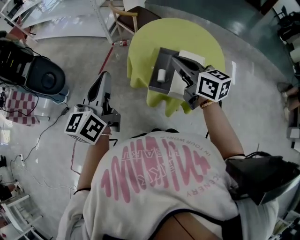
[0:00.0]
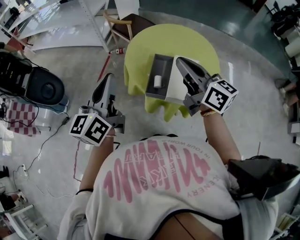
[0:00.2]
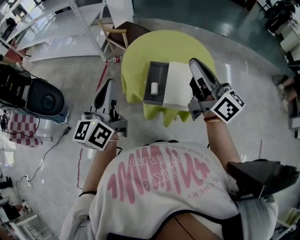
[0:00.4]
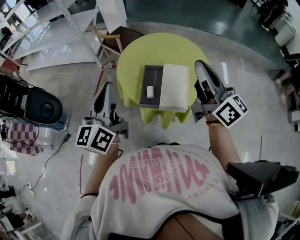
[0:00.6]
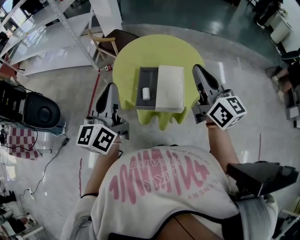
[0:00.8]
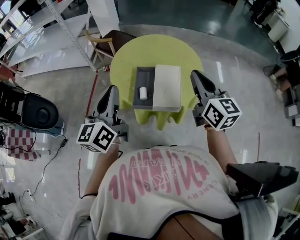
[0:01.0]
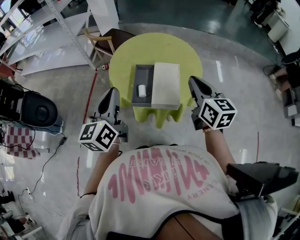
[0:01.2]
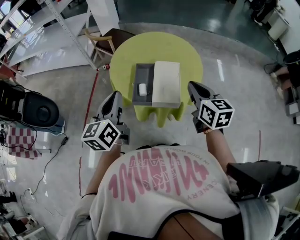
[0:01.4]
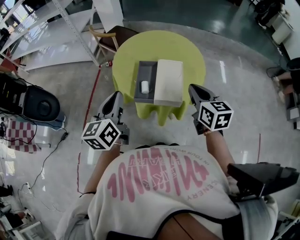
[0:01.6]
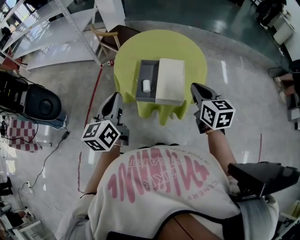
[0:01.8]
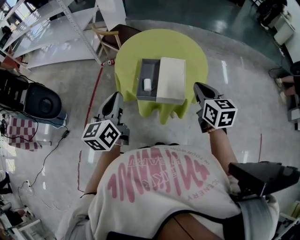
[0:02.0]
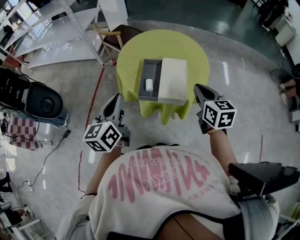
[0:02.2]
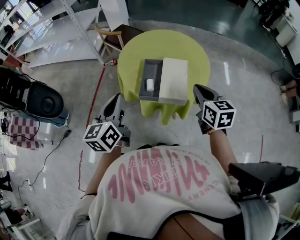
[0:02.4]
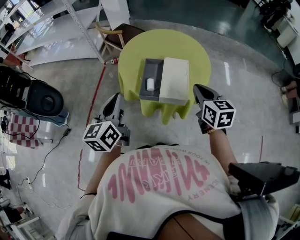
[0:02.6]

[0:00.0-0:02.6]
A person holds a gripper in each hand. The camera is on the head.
0:00.0 to 0:01.2: The left gripper travels to the right by roughly 10 cm; the right gripper is displaced to the right and backward by some 20 cm, and swivels approximately 30 degrees.
0:01.2 to 0:02.6: The right gripper heads downward, covering about 5 cm. Meanwhile the left gripper moves roughly 5 cm.

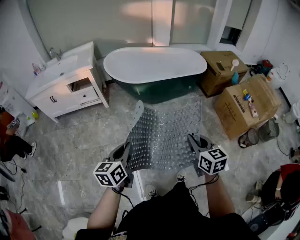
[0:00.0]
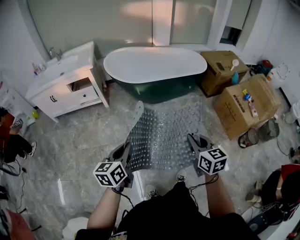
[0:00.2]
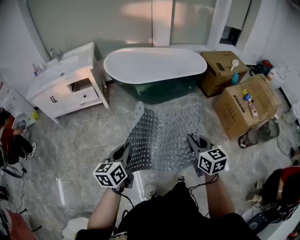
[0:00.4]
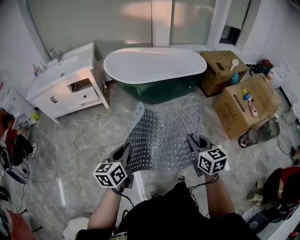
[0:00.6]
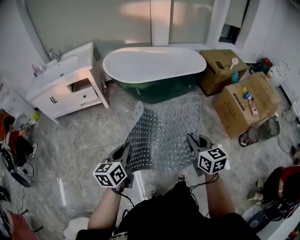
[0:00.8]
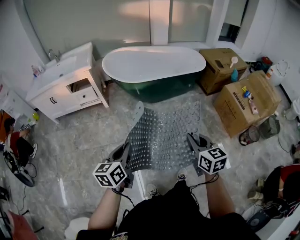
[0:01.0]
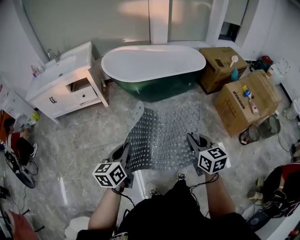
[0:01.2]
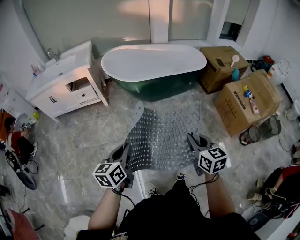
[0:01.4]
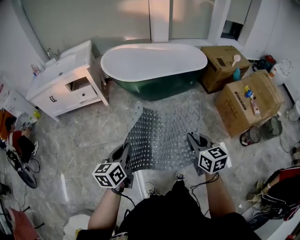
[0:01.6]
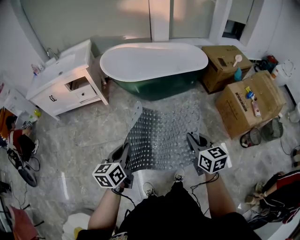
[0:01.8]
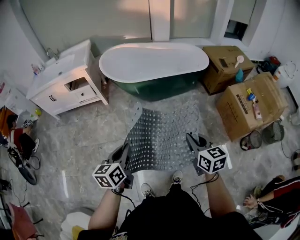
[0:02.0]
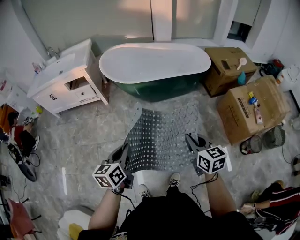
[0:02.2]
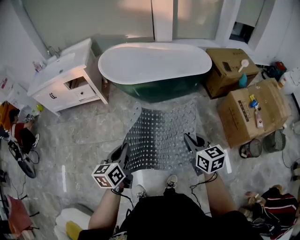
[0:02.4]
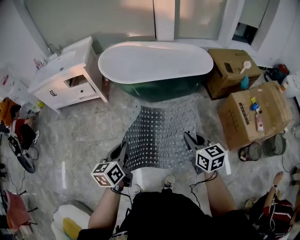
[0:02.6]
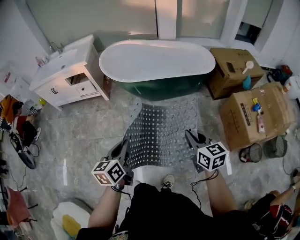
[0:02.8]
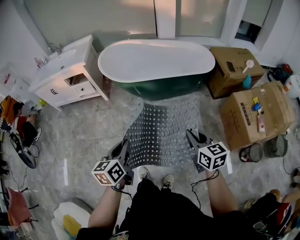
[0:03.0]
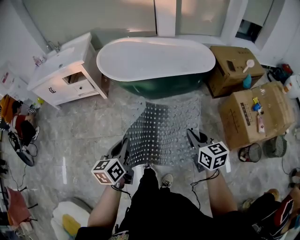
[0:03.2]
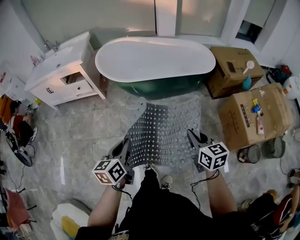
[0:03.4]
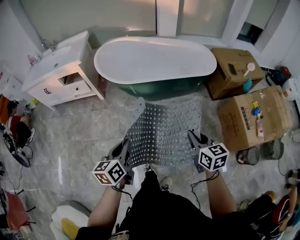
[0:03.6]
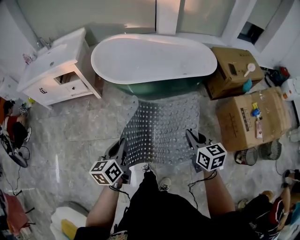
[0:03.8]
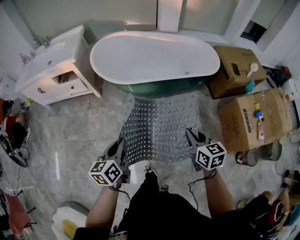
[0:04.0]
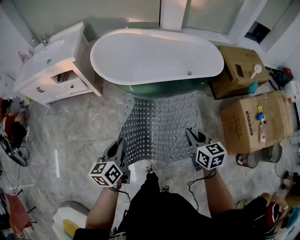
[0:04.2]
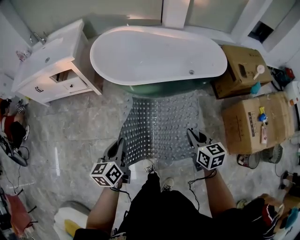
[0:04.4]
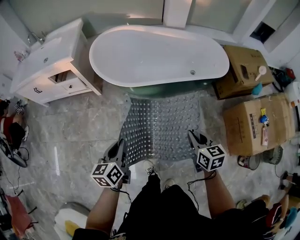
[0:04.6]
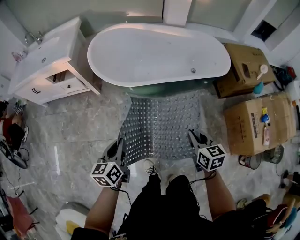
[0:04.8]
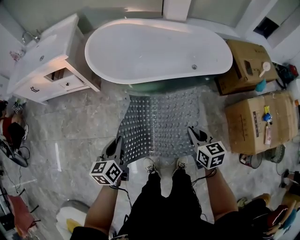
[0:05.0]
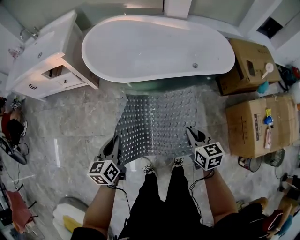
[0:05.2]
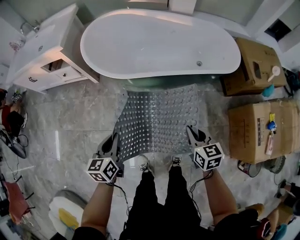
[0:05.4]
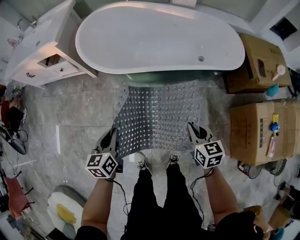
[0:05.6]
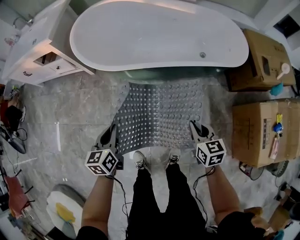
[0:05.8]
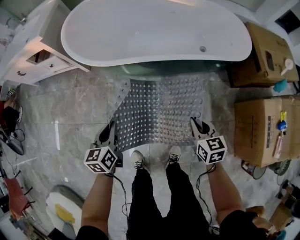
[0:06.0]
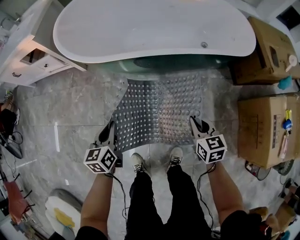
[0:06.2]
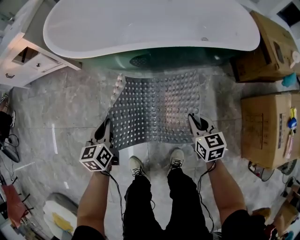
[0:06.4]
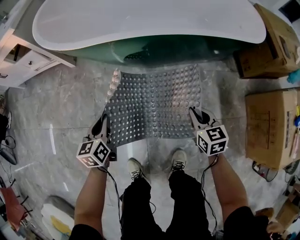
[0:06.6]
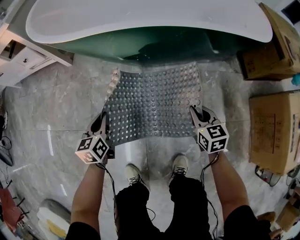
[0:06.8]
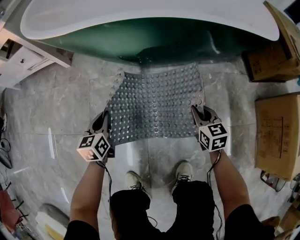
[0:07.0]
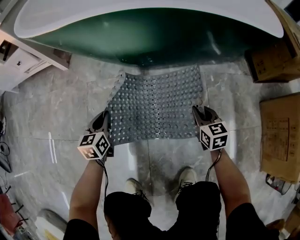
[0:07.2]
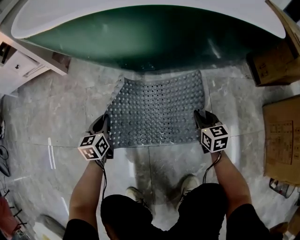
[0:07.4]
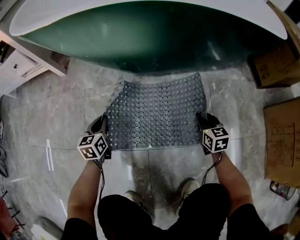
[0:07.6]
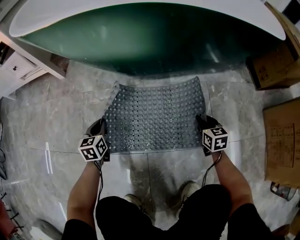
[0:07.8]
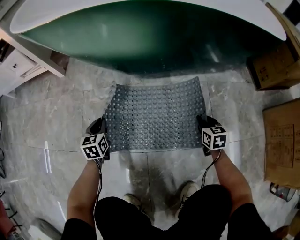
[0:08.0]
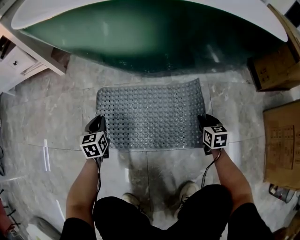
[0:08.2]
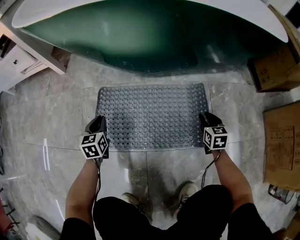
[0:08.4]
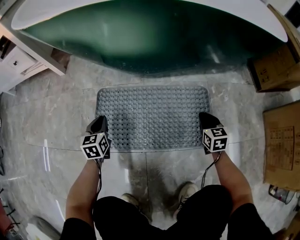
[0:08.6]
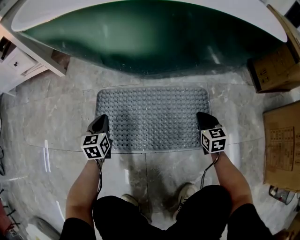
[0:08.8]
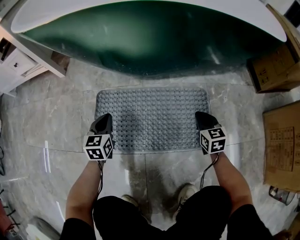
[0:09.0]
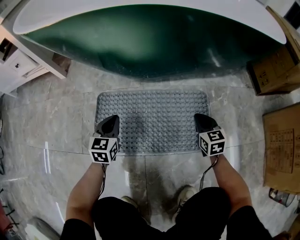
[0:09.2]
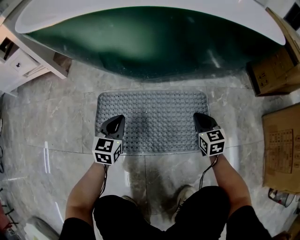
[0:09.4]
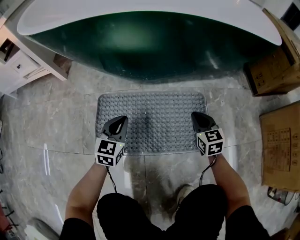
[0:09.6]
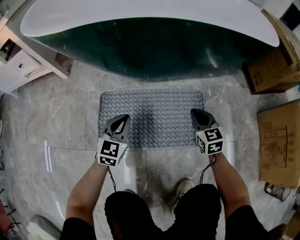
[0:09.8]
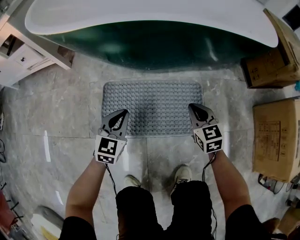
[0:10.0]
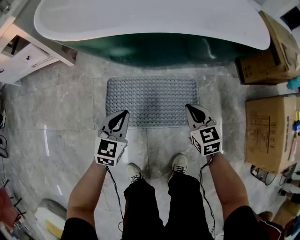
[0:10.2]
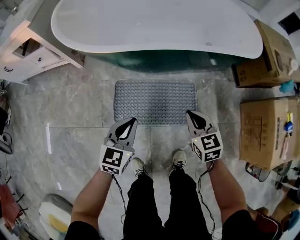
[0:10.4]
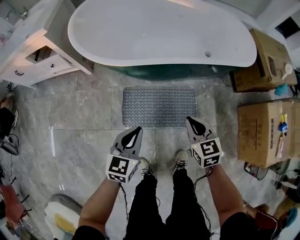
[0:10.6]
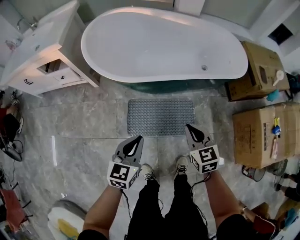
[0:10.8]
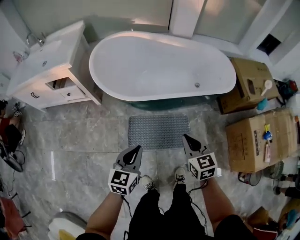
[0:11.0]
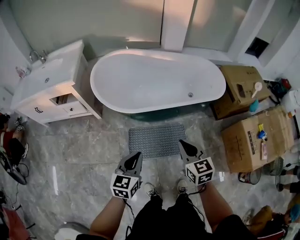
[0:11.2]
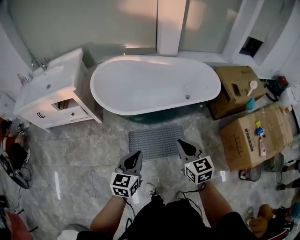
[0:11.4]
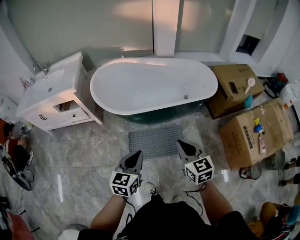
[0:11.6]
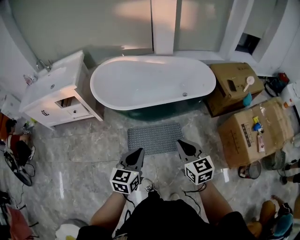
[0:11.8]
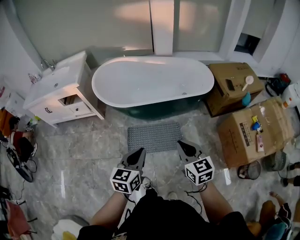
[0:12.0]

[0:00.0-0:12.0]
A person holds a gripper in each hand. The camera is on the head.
0:00.0 to 0:01.6: The grippers stay close to where they were, moving slightly.
0:01.6 to 0:03.0: Both grippers travel together to the right and forward, some 20 cm.
0:03.0 to 0:04.4: The right gripper travels forward and downward by about 25 cm, while the left gripper shifts approximately 20 cm forward.
0:04.4 to 0:06.0: The right gripper moves downward, to the right and forward, some 30 cm; the left gripper travels downward and forward by about 25 cm.
0:06.0 to 0:07.6: Both grippers travel together downward, roughly 50 cm.
0:07.6 to 0:09.0: The right gripper opens and closes again.
0:09.0 to 0:10.4: Both grippers travel together upward, approximately 35 cm.
0:10.4 to 0:12.0: Both grippers move upward and backward, approximately 50 cm.

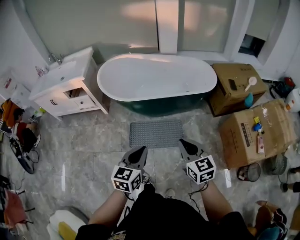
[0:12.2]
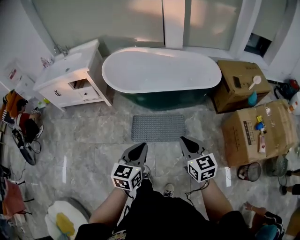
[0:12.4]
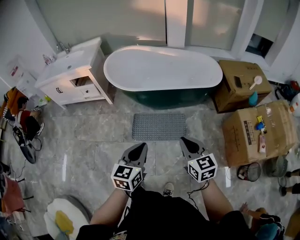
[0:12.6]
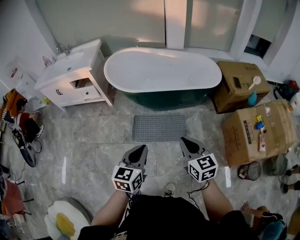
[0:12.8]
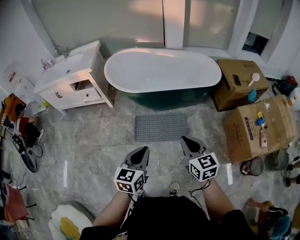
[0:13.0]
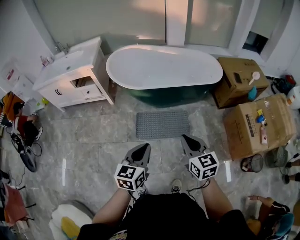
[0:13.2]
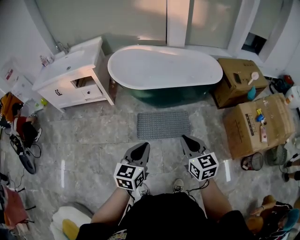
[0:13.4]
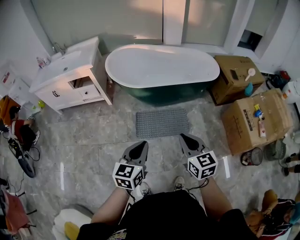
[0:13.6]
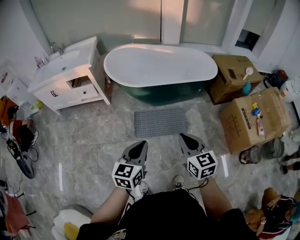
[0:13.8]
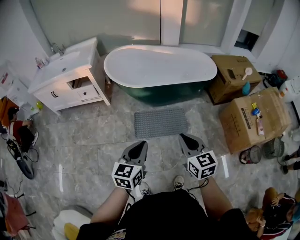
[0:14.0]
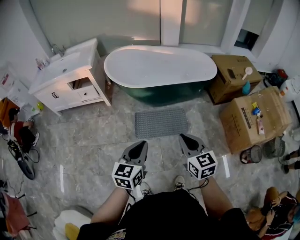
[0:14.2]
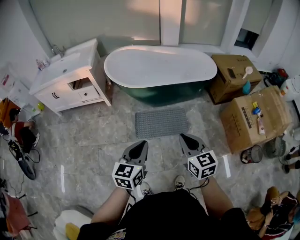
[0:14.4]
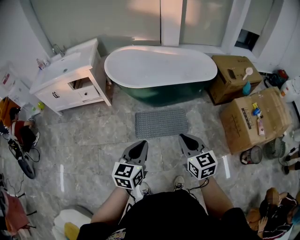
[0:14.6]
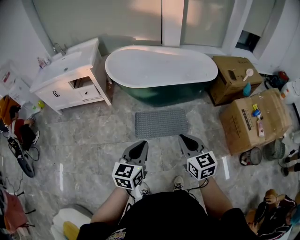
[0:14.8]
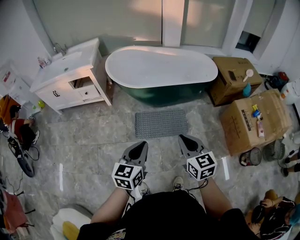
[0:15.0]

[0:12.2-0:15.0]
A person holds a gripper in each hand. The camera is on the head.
0:12.2 to 0:13.6: Both grippers travel together to the left and backward, about 15 cm.
0:13.6 to 0:15.0: The grippers stay close to where they were, moving slightly.

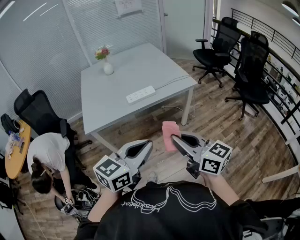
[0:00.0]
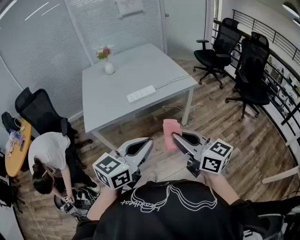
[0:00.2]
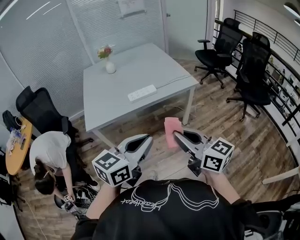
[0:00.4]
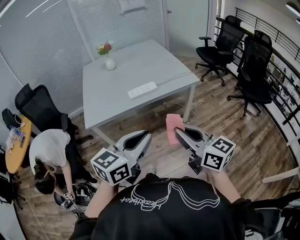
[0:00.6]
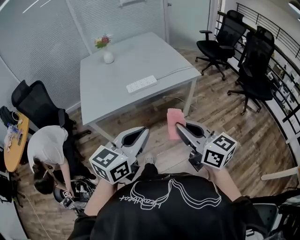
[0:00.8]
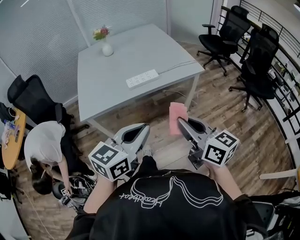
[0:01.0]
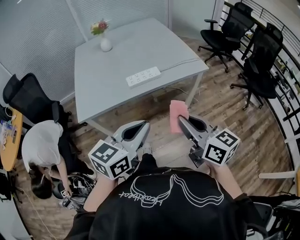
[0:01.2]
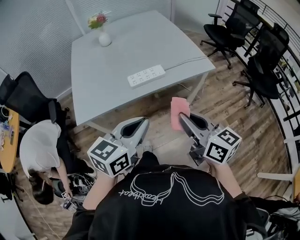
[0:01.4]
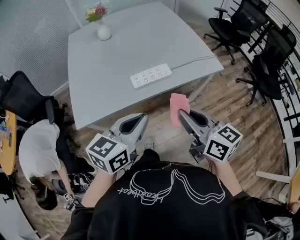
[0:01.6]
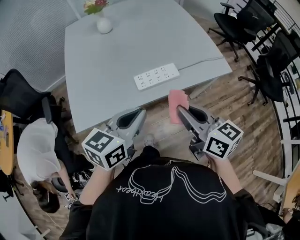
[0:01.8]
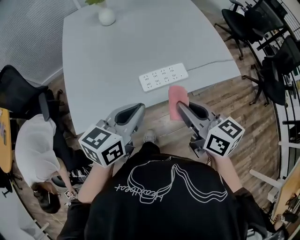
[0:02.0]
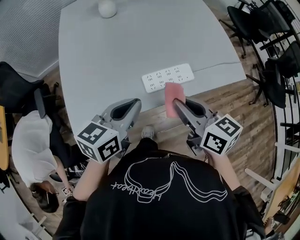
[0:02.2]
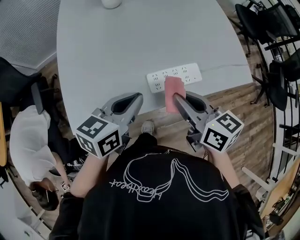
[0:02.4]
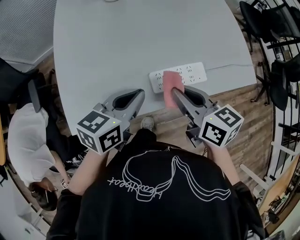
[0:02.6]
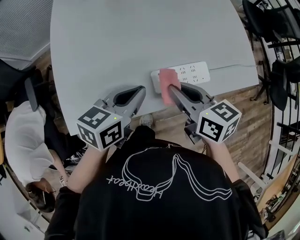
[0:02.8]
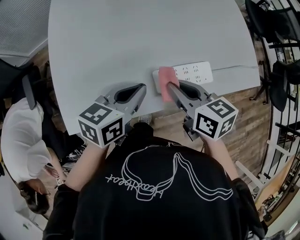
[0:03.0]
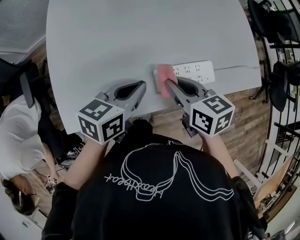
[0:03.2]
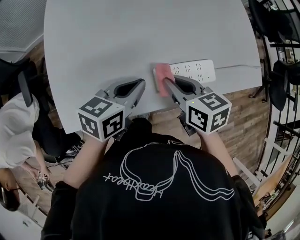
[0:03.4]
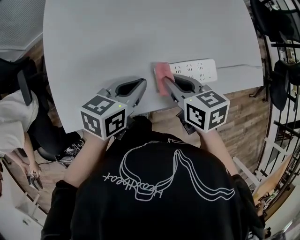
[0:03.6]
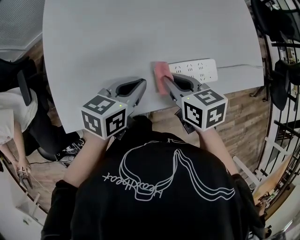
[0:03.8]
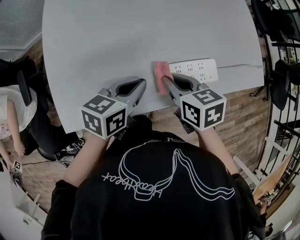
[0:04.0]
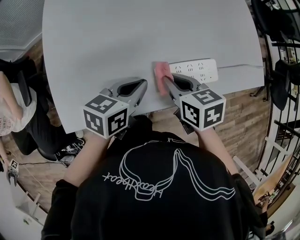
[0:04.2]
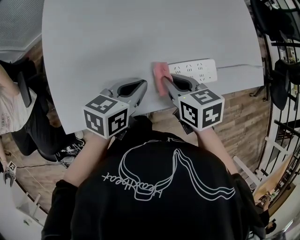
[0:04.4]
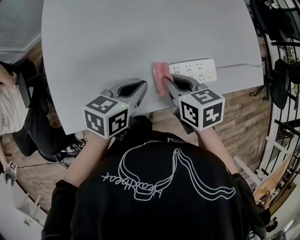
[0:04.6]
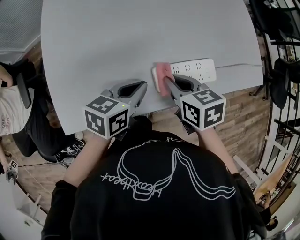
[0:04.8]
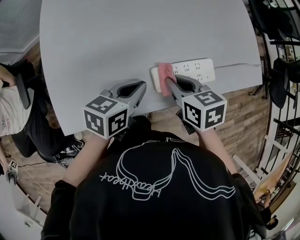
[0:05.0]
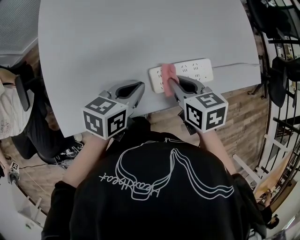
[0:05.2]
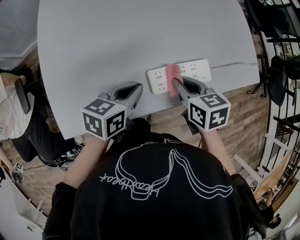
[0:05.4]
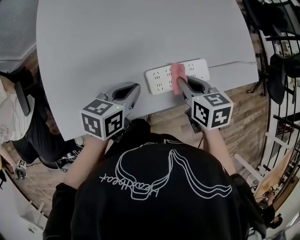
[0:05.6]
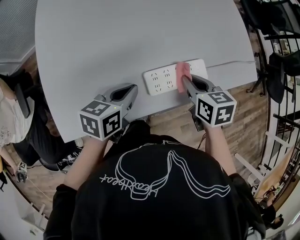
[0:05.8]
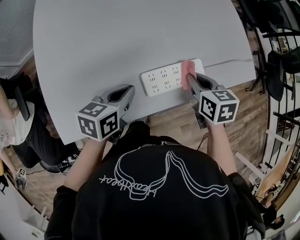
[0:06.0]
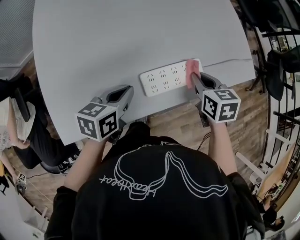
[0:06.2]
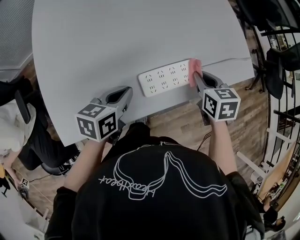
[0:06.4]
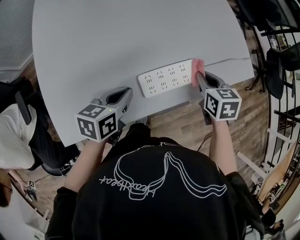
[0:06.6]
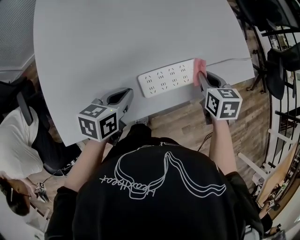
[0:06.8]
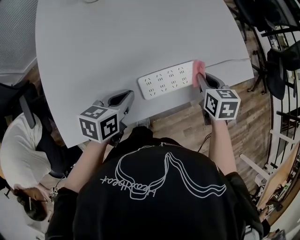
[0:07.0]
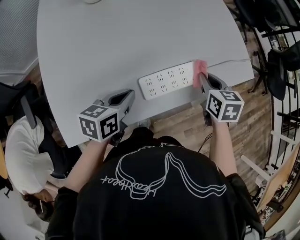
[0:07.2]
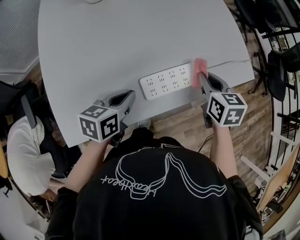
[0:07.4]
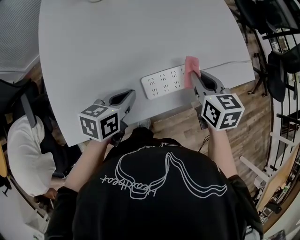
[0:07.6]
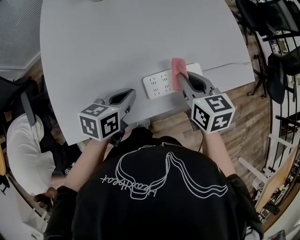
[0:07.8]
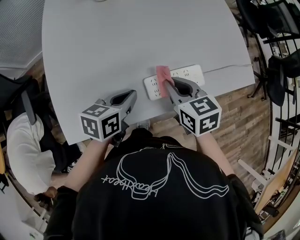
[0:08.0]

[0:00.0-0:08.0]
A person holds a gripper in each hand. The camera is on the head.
0:00.0 to 0:01.6: The right gripper moves forward, about 25 cm, while the left gripper is displaced forward and to the left by about 30 cm.
0:01.6 to 0:03.2: The right gripper moves forward, to the left and downward, some 40 cm, and rotates some 30 degrees, while the left gripper heads forward, downward and to the left, covering some 35 cm, and rotates about 20 degrees.
0:03.2 to 0:04.8: The grippers move only a little.
0:04.8 to 0:06.4: The right gripper travels to the right by roughly 15 cm, and changes its angle by approximately 20 degrees.
0:06.4 to 0:08.0: The right gripper is displaced to the left and backward by some 15 cm.
